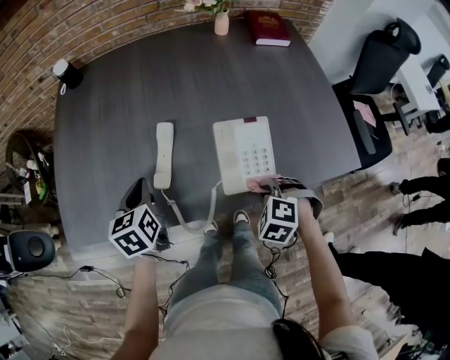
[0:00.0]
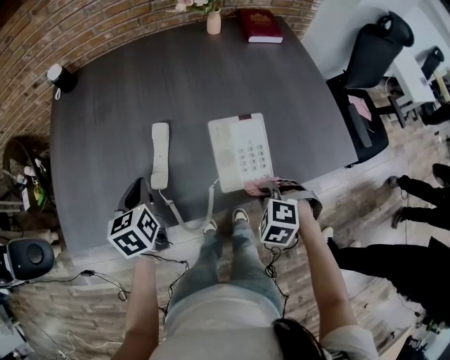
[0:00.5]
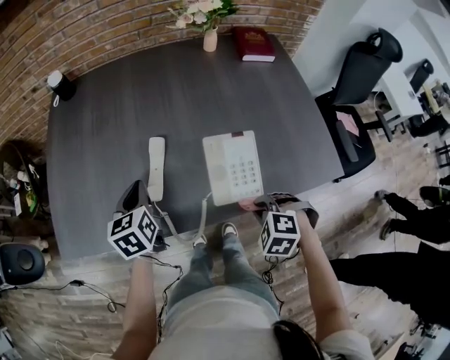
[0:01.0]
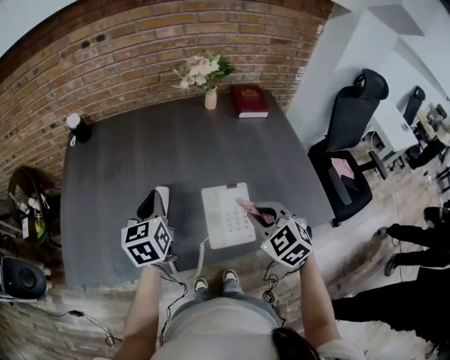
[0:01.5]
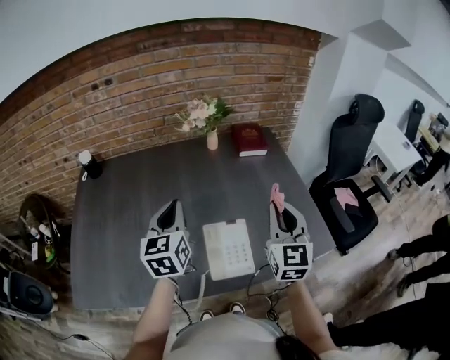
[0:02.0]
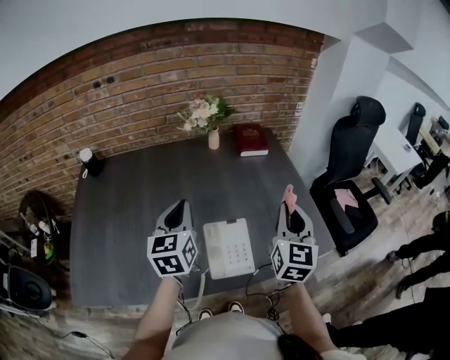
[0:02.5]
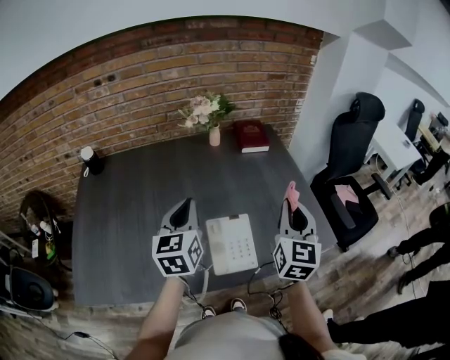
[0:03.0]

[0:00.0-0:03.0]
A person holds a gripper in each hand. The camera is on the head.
0:00.0 to 0:01.5: The left gripper is displaced upward, to the right and forward by some 15 cm. Meanwhile the right gripper moves upward and forward, some 20 cm, and angles its fingers upward, by approximately 30 degrees.
0:01.5 to 0:03.0: The right gripper heads upward and to the right, covering about 20 cm, and points its fingers about 40 degrees further upward. Meanwhile the left gripper heads to the right and upward, covering roughly 15 cm.

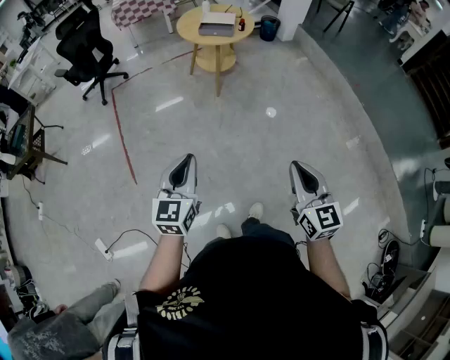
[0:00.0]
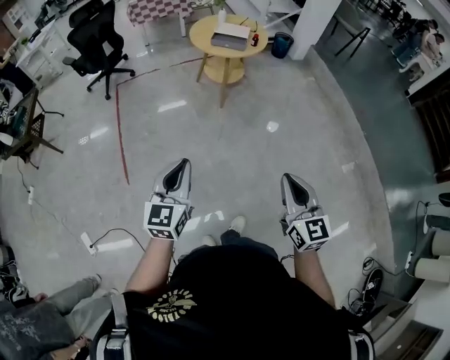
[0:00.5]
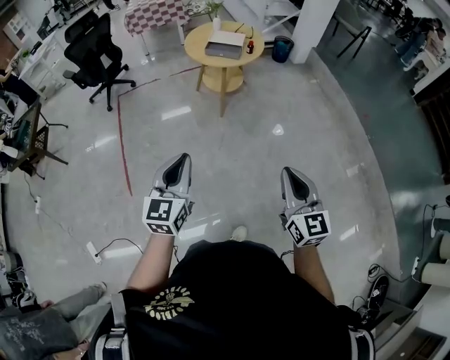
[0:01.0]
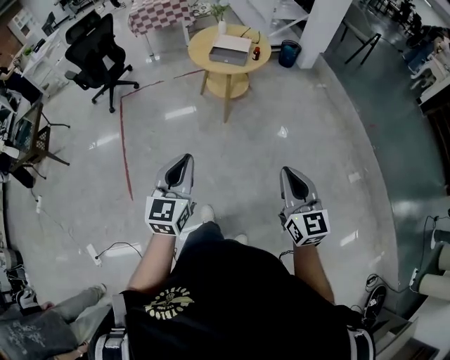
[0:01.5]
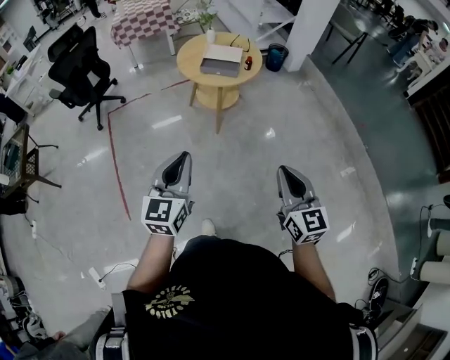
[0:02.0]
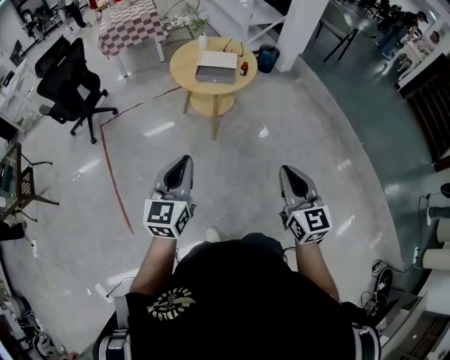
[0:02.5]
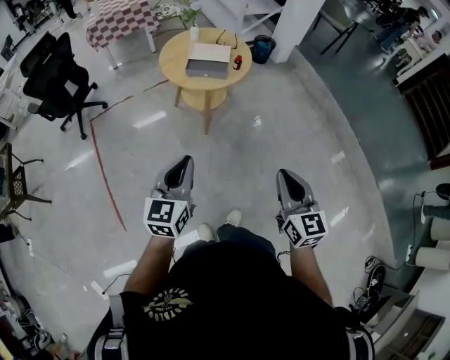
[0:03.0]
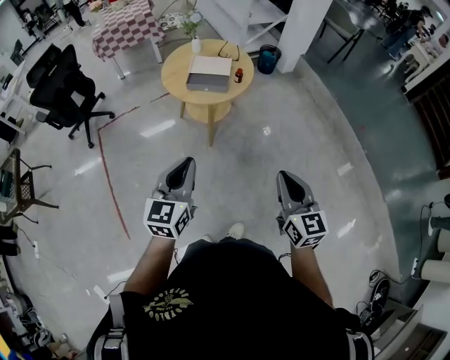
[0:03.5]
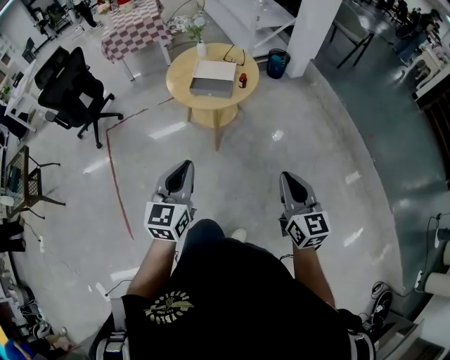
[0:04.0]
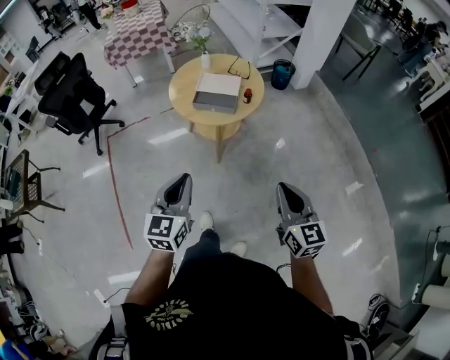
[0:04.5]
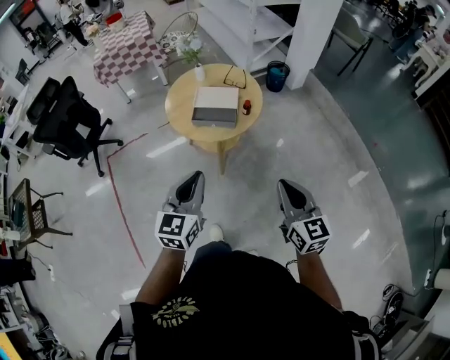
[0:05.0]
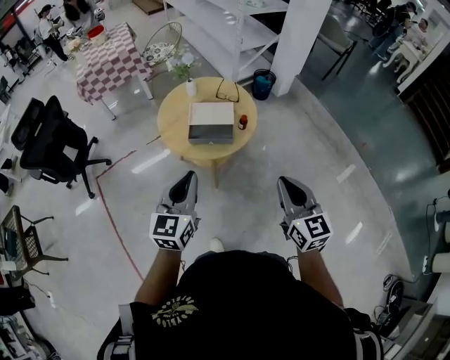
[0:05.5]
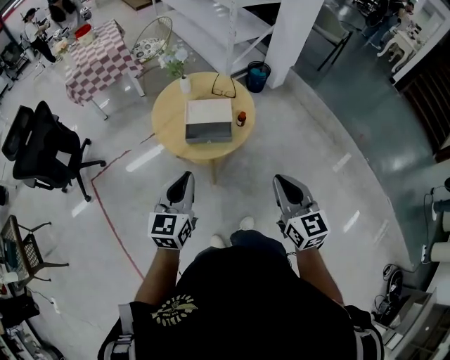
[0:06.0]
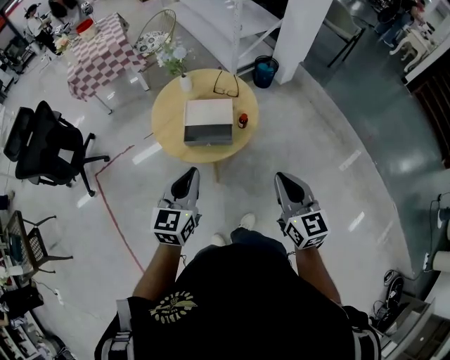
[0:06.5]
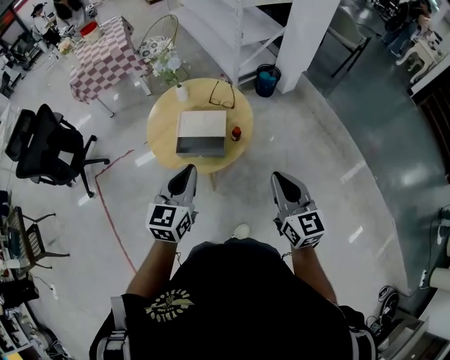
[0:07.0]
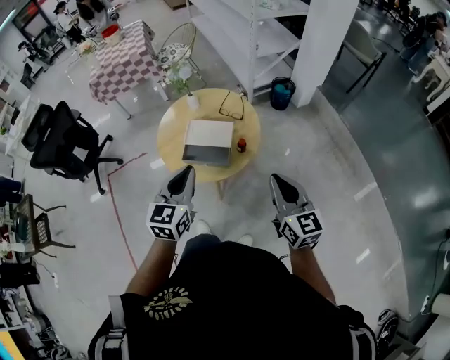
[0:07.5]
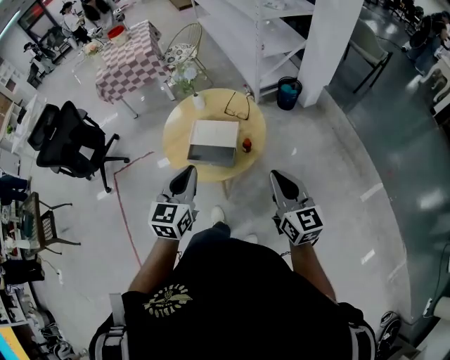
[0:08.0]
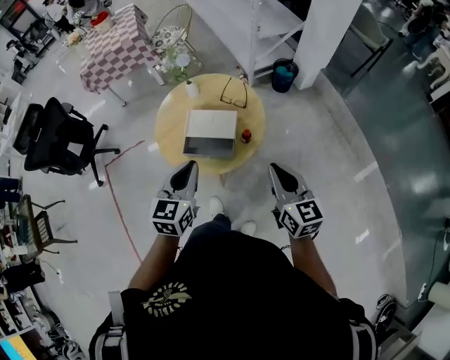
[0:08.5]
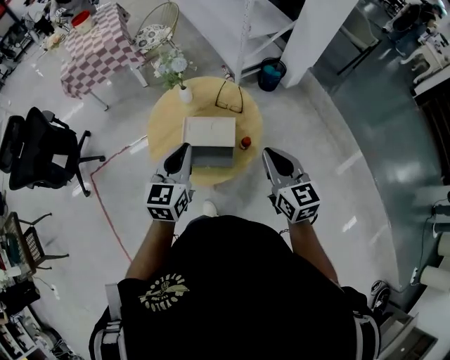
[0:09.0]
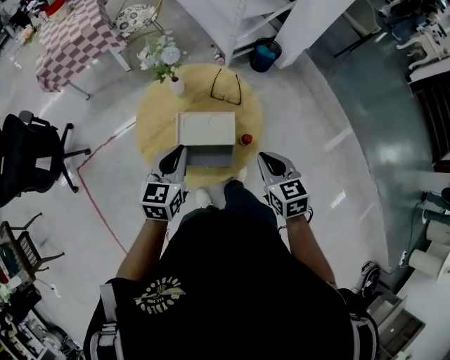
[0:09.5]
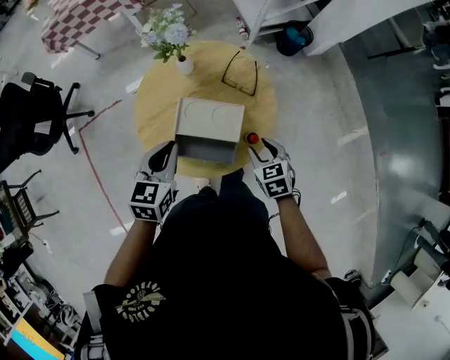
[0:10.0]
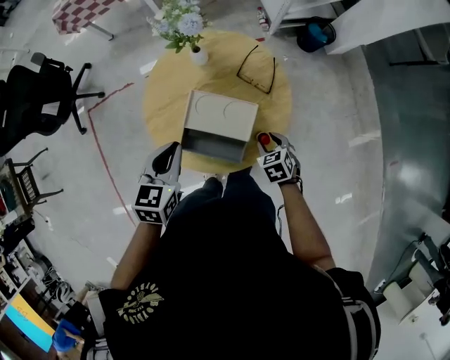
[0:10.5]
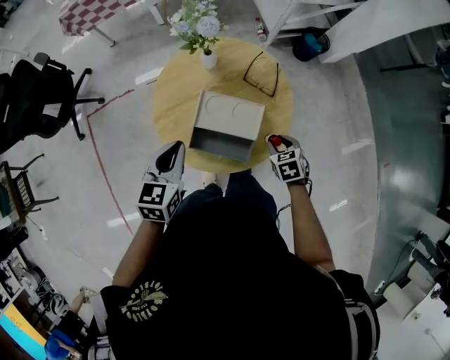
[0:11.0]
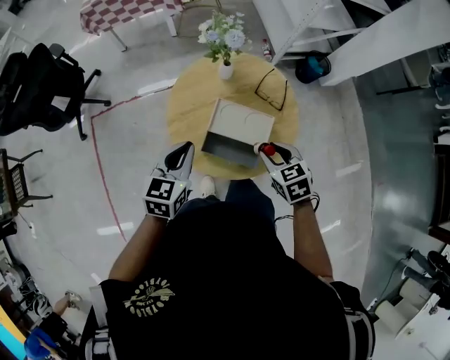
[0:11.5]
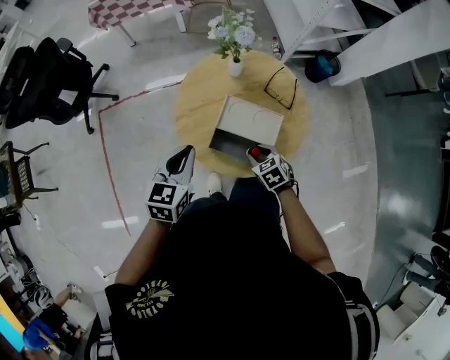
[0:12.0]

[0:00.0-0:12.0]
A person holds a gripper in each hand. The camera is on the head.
0:00.0 to 0:02.0: The grippers both shift forward by approximately 30 cm.
0:02.0 to 0:04.0: The left gripper is displaced forward by some 20 cm. Meanwhile the right gripper moves forward and to the right, some 20 cm.
0:04.0 to 0:06.0: The right gripper shifts roughly 25 cm forward and to the left, while the left gripper moves forward, some 30 cm.
0:06.0 to 0:08.0: The right gripper goes approximately 20 cm forward and to the right. The left gripper is displaced to the right and forward by roughly 15 cm.
0:08.0 to 0:10.0: The left gripper heads forward and downward, covering roughly 30 cm, and turns by approximately 20 degrees. Meanwhile the right gripper travels downward and forward by about 40 cm, angles its fingers downward, by roughly 50 degrees, and opens up.
0:10.0 to 0:12.0: The left gripper shifts approximately 10 cm to the left and backward, while the right gripper moves up and down over about 20 cm, changing direction 2 times, and changes its angle by approximately 20 degrees.

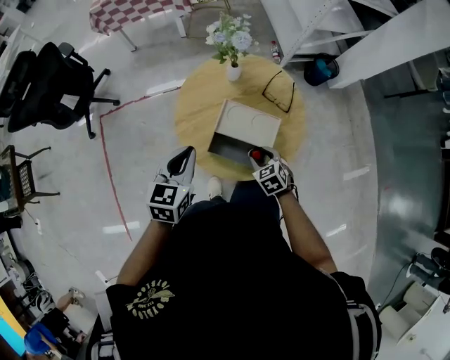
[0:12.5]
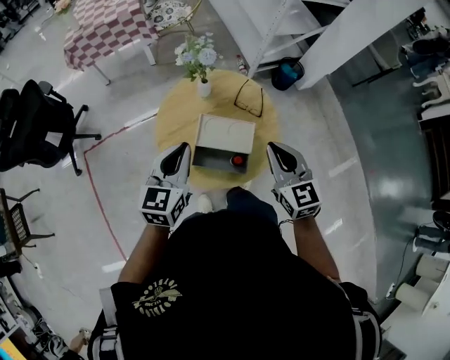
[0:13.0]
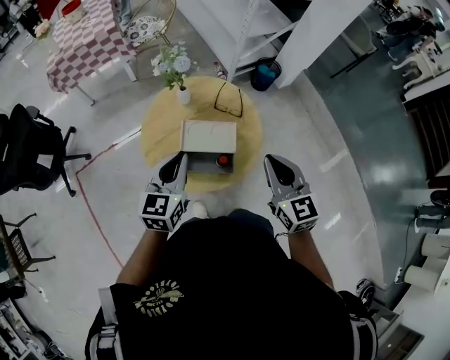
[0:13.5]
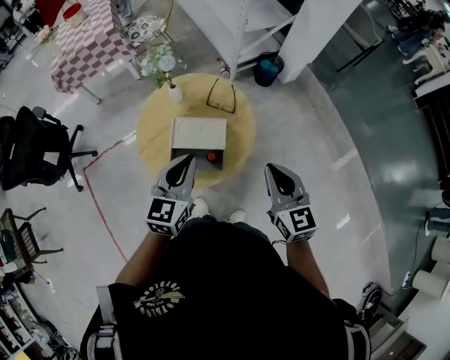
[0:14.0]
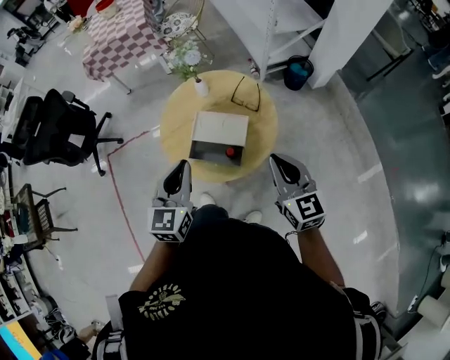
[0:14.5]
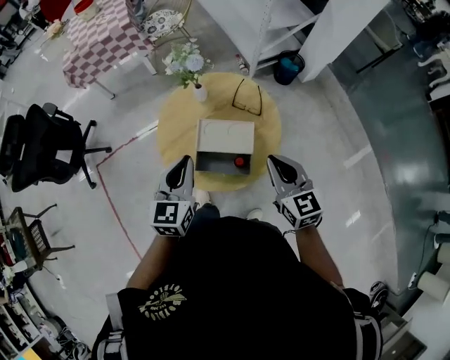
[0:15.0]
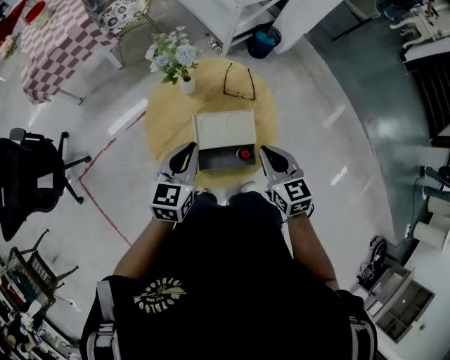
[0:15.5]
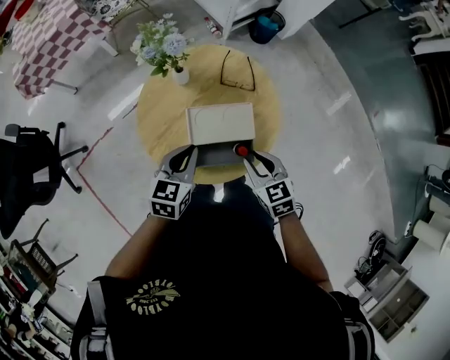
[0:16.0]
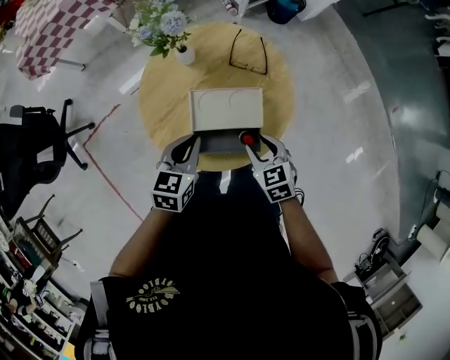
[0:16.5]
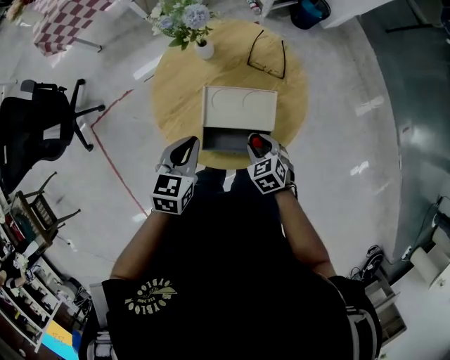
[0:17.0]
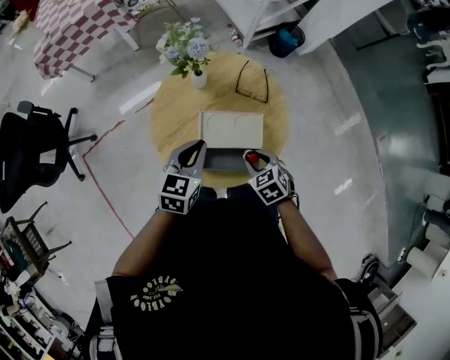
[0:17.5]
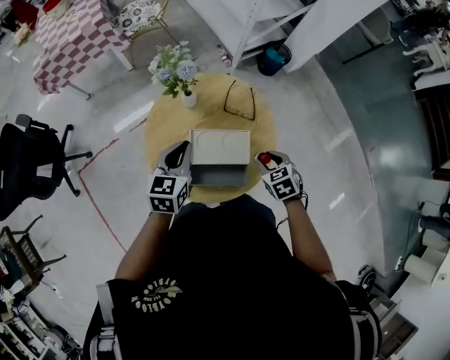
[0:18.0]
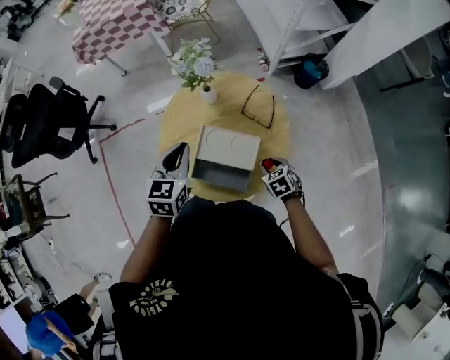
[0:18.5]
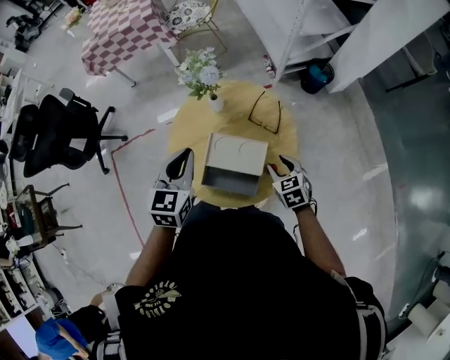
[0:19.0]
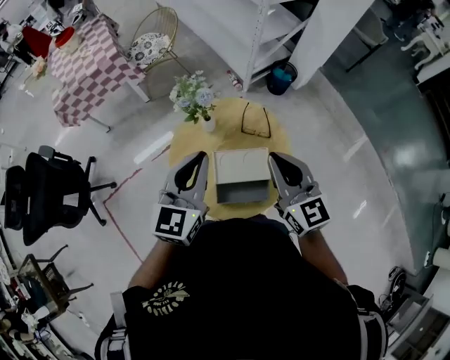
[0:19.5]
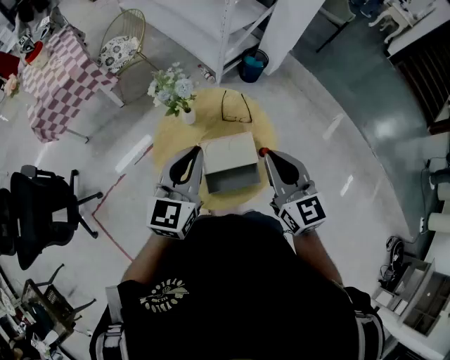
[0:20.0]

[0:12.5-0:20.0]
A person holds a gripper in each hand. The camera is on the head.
0:12.5 to 0:14.5: The left gripper goes roughly 20 cm to the right, upward and backward. The right gripper heads upward and to the right, covering roughly 35 cm, points its fingers some 40 degrees further upward, and closes up.
0:14.5 to 0:16.5: The right gripper is displaced downward and to the left by some 30 cm, tips its fingers downward by about 40 degrees, and opens. The left gripper shifts about 25 cm downward and forward, and changes its angle by roughly 40 degrees.
0:16.5 to 0:18.0: The right gripper travels to the right by roughly 5 cm, and goes downward and returns, about 5 cm each way, while the left gripper heads upward and forward, covering approximately 10 cm.
0:18.0 to 0:20.0: The left gripper moves upward, approximately 15 cm, and changes its angle by some 30 degrees. Meanwhile the right gripper shifts some 30 cm upward, tips its fingers upward by approximately 50 degrees, and closes.

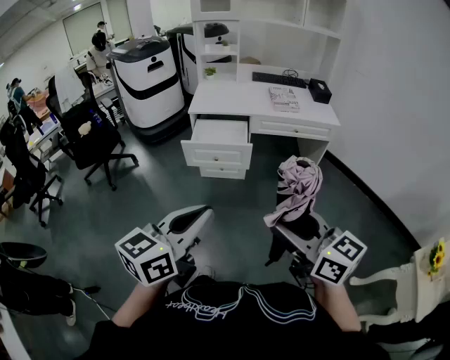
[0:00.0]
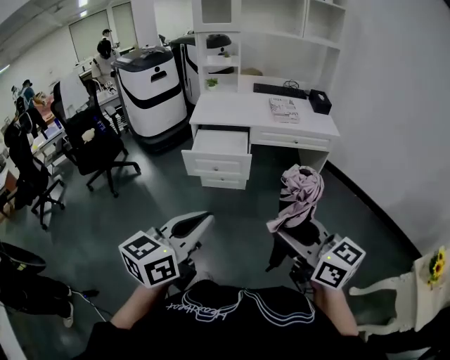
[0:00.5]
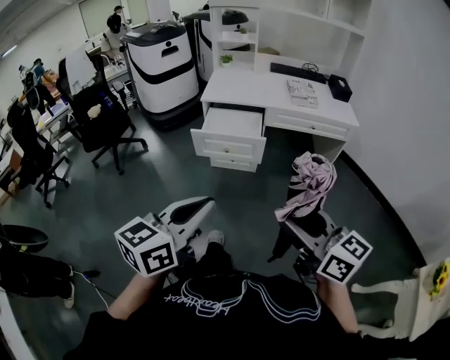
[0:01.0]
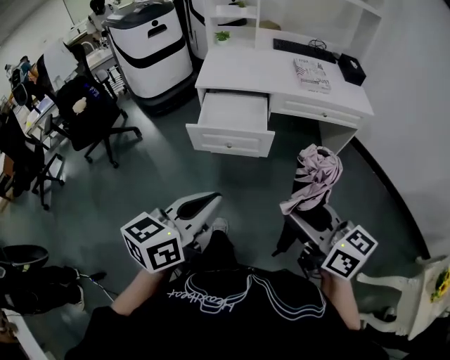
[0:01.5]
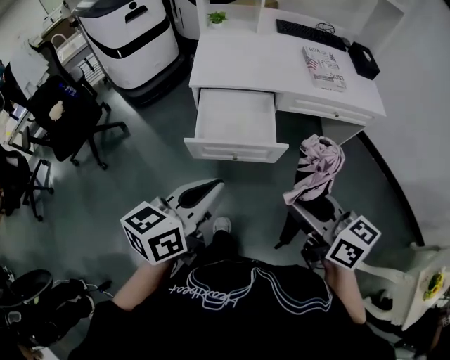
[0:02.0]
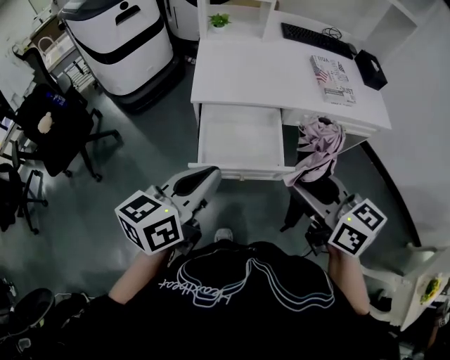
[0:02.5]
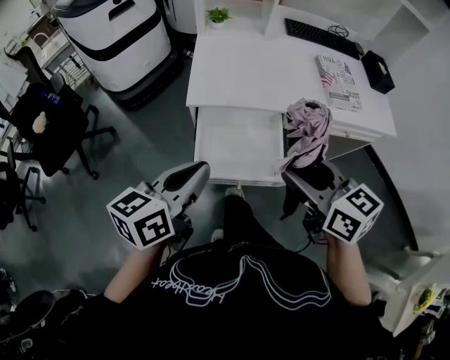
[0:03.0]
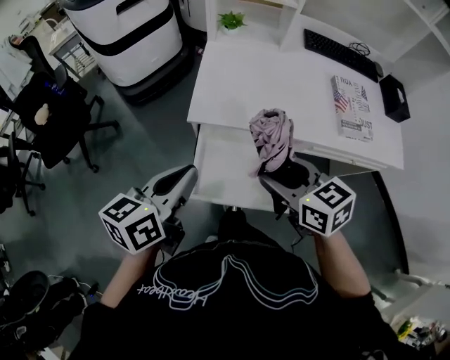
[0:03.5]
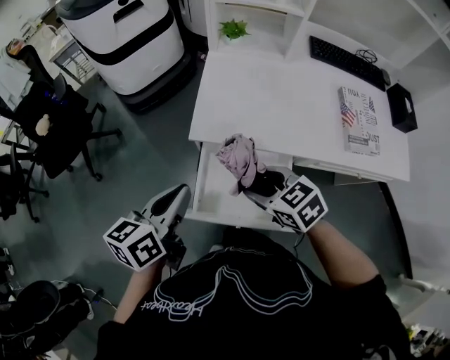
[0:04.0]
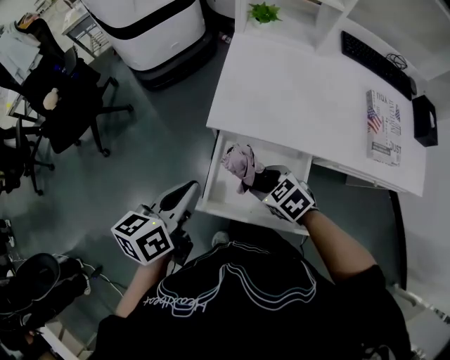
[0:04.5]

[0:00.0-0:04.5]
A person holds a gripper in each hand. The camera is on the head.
0:00.0 to 0:02.0: Both grippers travel together forward, about 30 cm.
0:02.0 to 0:04.5: The right gripper ends up approximately 40 cm from where it was, and tips its fingers downward by approximately 40 degrees; the left gripper moves roughly 35 cm, and changes its angle by approximately 30 degrees.
